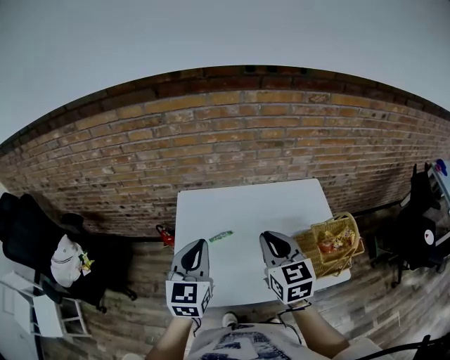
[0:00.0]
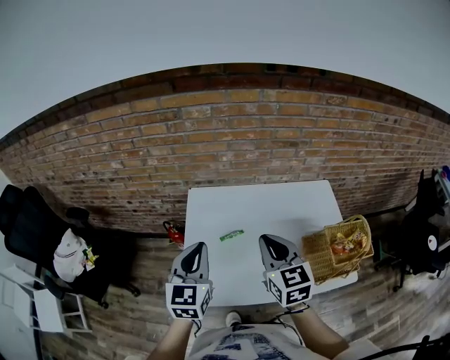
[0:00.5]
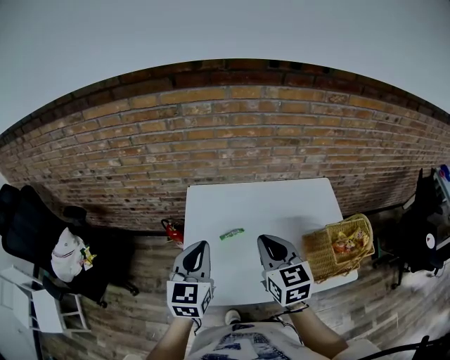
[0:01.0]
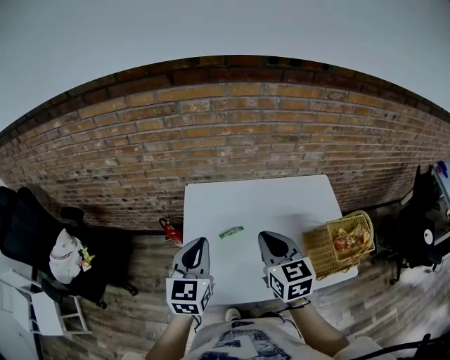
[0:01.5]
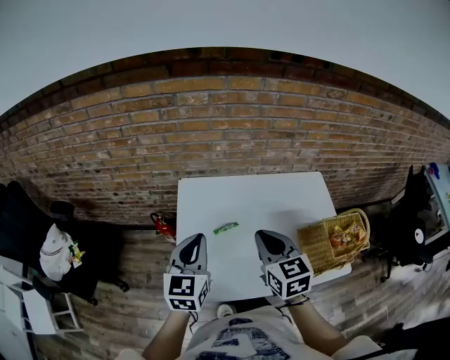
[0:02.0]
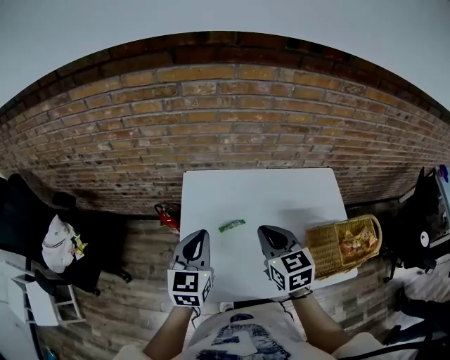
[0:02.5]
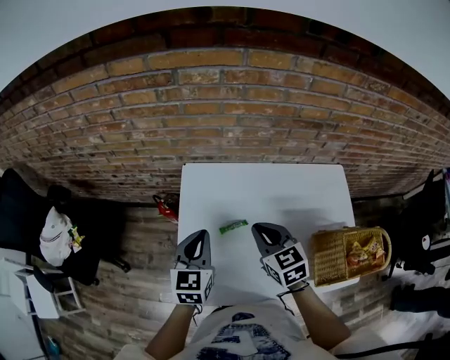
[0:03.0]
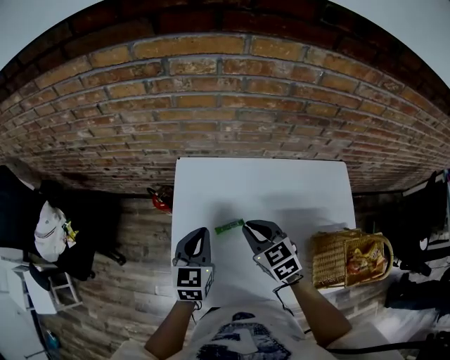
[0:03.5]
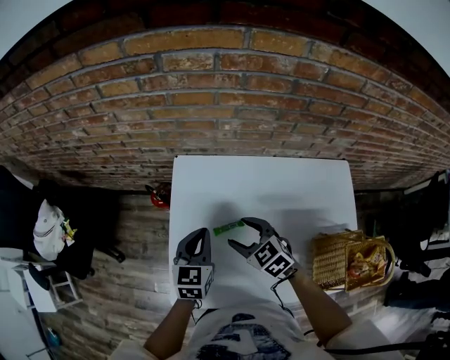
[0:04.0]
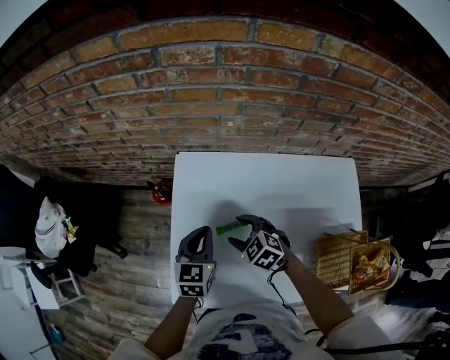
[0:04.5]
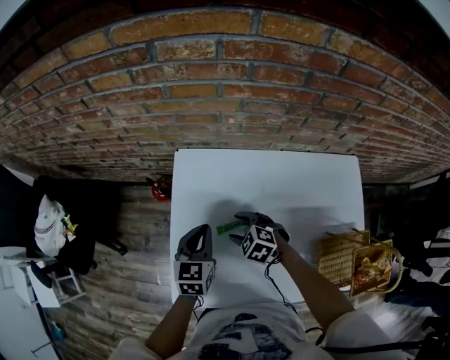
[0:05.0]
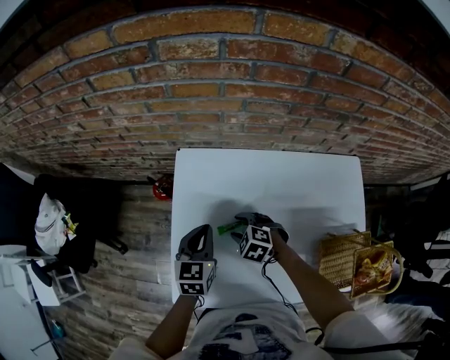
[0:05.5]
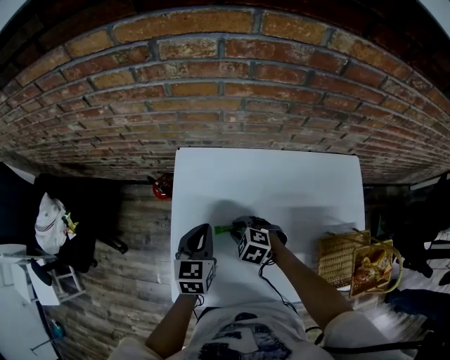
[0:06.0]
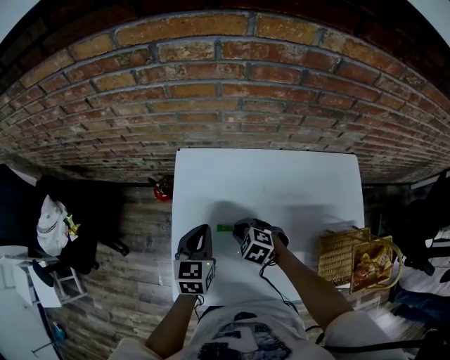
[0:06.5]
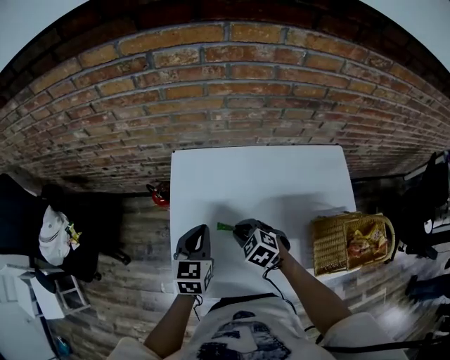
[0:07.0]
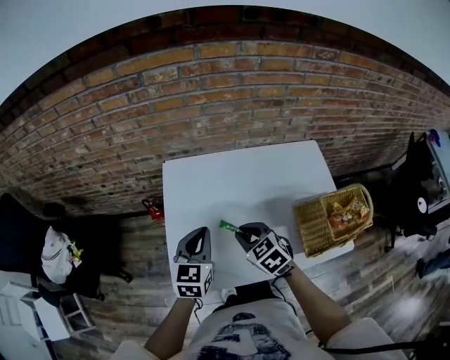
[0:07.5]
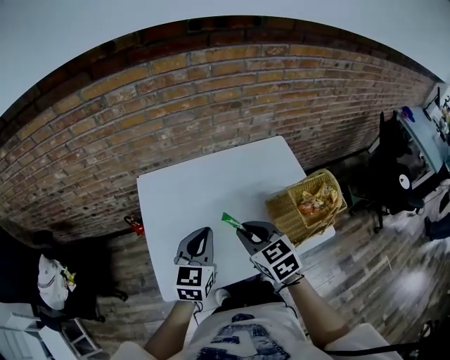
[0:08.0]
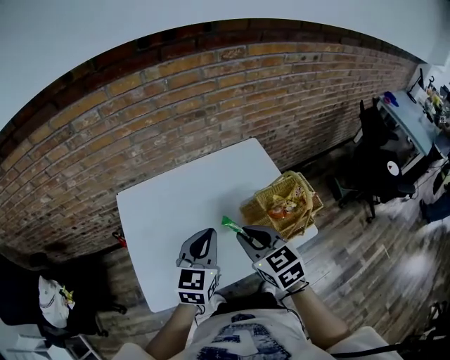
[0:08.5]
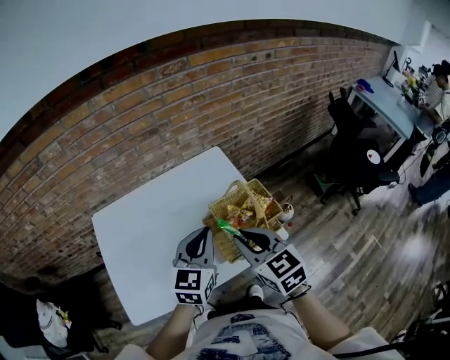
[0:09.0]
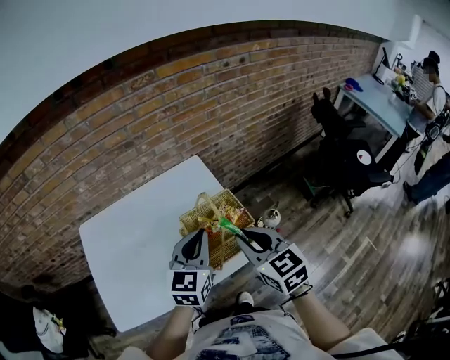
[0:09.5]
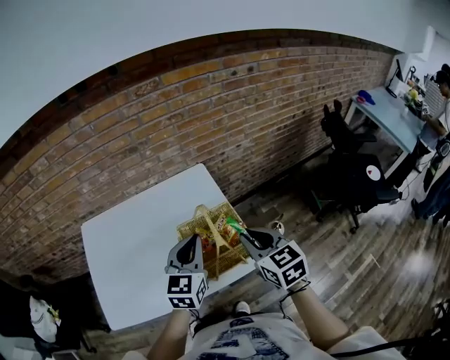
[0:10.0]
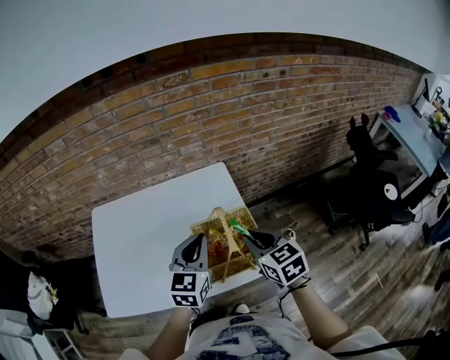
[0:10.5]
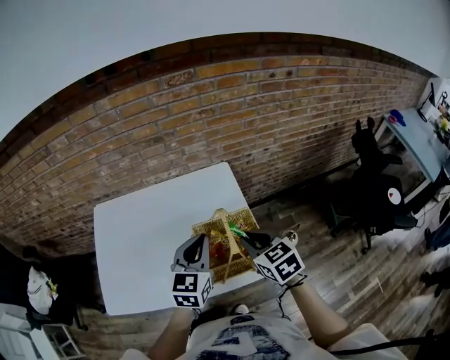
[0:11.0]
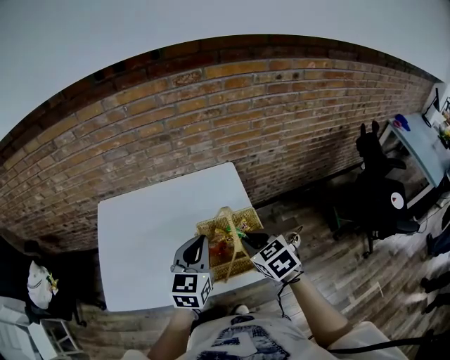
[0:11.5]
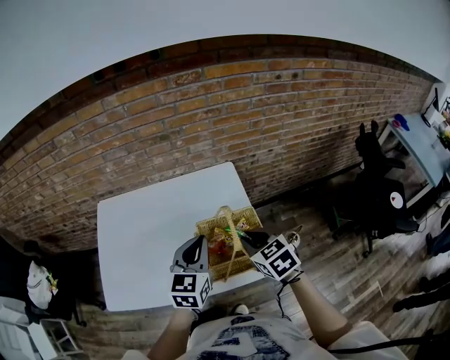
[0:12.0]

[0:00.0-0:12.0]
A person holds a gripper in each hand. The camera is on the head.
0:00.0 to 0:02.0: Both grippers travel together to the left, about 5 cm.
0:02.0 to 0:04.0: The two grippers go approximately 20 cm downward and forward. The right gripper rotates roughly 40 degrees, and opens its fingers.
0:04.0 to 0:06.0: The right gripper moves downward, some 10 cm, turns by approximately 30 degrees, and closes.
0:06.0 to 0:08.0: The right gripper heads upward, covering roughly 25 cm, and tips its fingers upward by some 30 degrees. Meanwhile the left gripper moves approximately 25 cm, and rotates roughly 30 degrees.
0:08.0 to 0:10.0: The two grippers go roughly 35 cm to the right.
0:10.0 to 0:12.0: The right gripper goes approximately 10 cm downward and forward, and changes its angle by approximately 20 degrees.

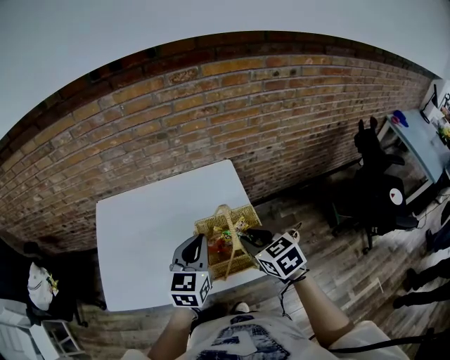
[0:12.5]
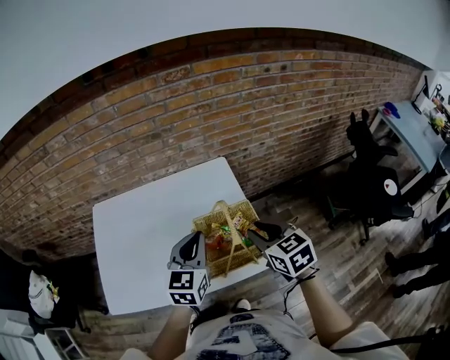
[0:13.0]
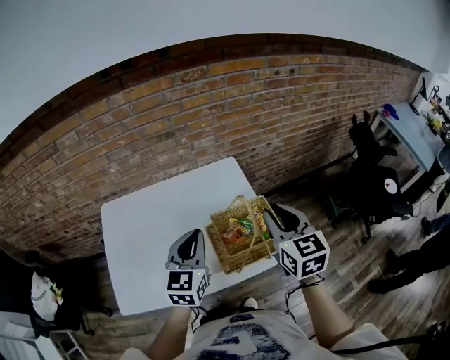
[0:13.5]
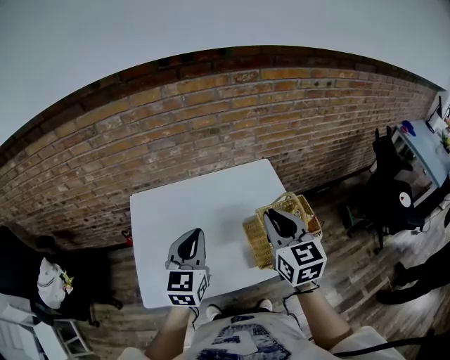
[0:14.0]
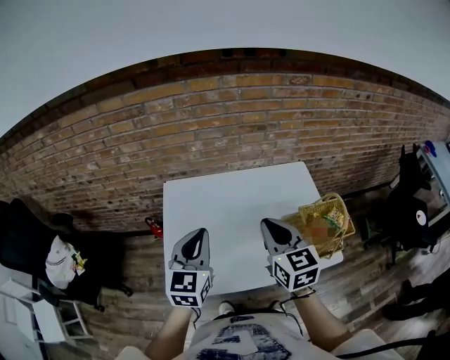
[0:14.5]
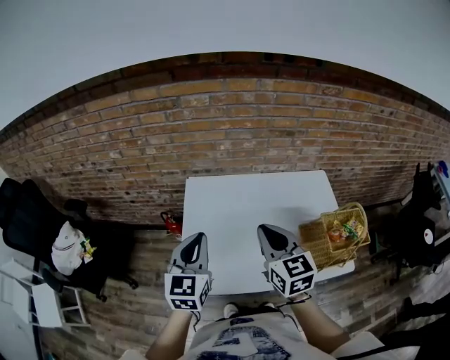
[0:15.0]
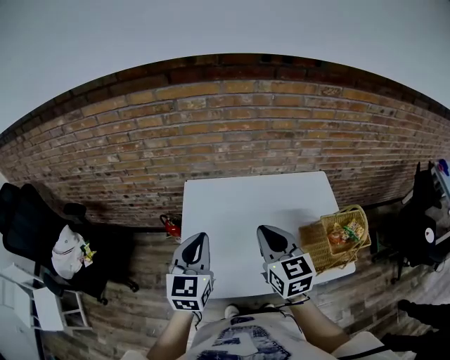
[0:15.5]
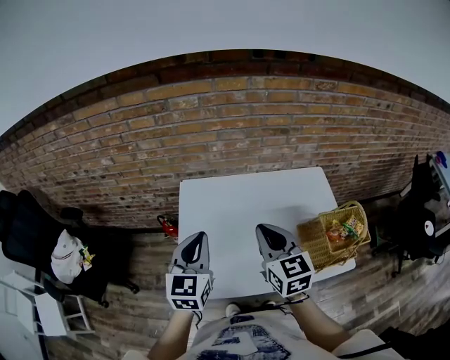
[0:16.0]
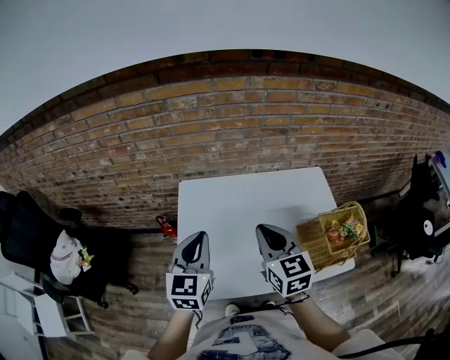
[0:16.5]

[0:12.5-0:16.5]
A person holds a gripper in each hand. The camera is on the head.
0:12.5 to 0:14.5: The two grippers go approximately 30 cm to the left. The right gripper rotates about 20 degrees.
0:14.5 to 0:16.5: The grippers both shift to the left by roughly 5 cm.

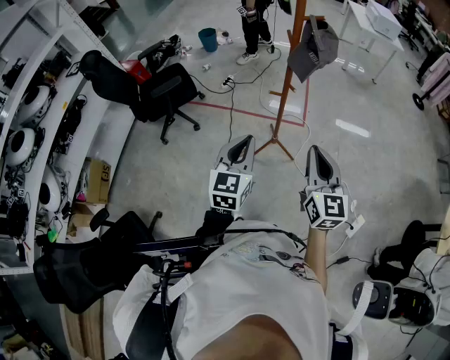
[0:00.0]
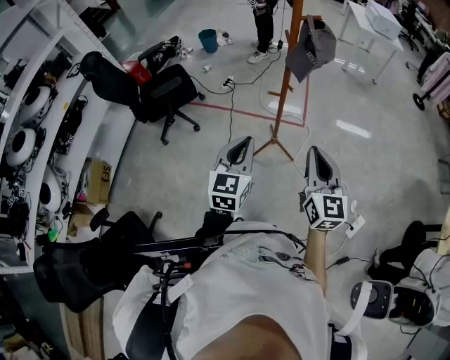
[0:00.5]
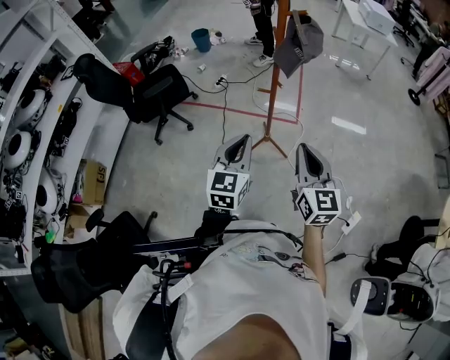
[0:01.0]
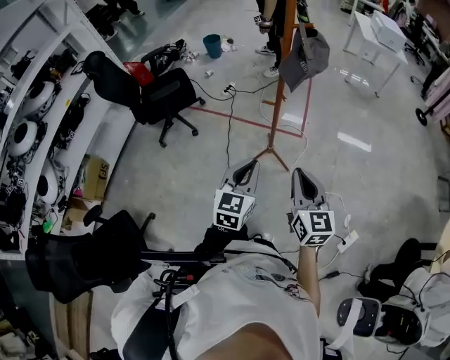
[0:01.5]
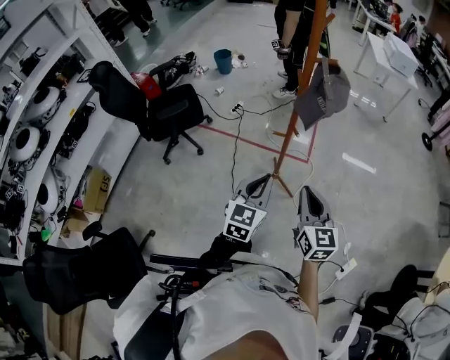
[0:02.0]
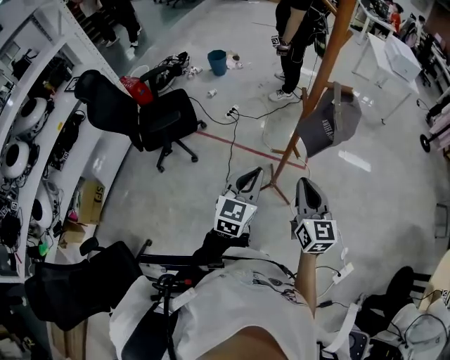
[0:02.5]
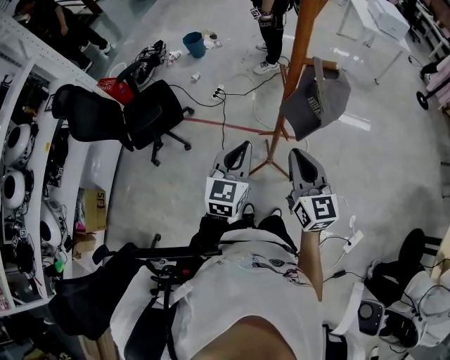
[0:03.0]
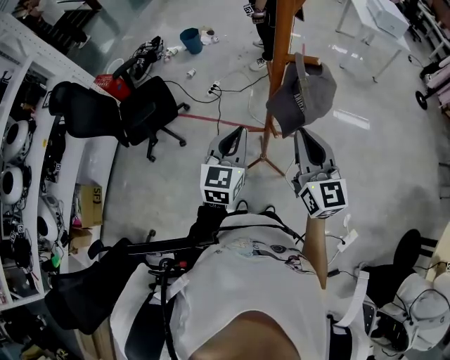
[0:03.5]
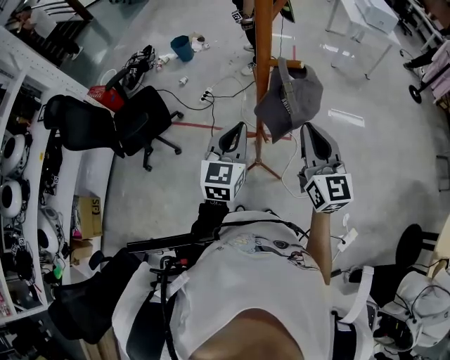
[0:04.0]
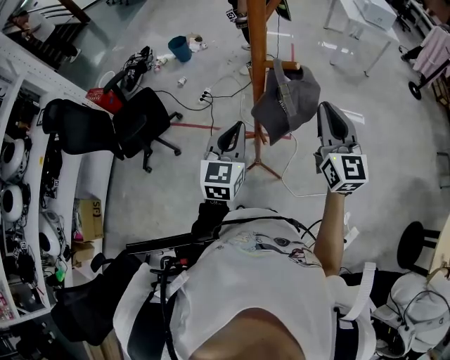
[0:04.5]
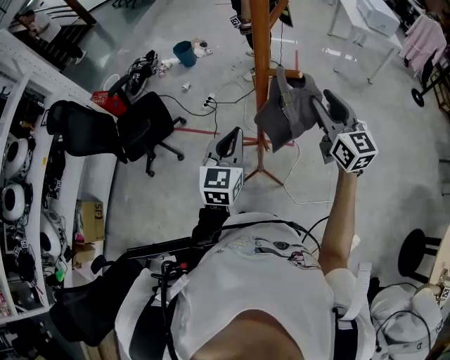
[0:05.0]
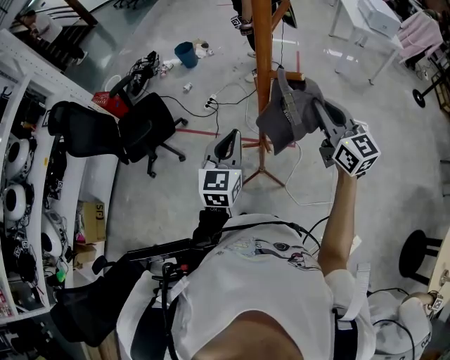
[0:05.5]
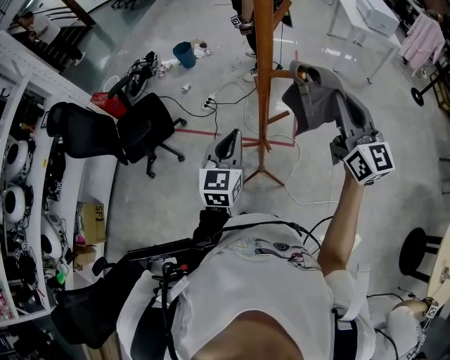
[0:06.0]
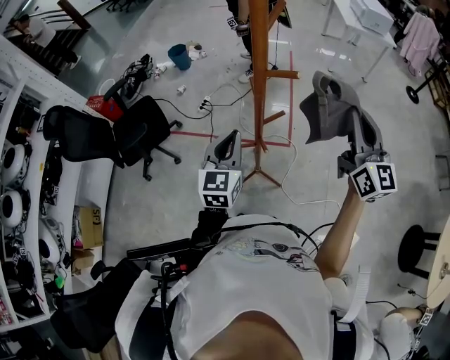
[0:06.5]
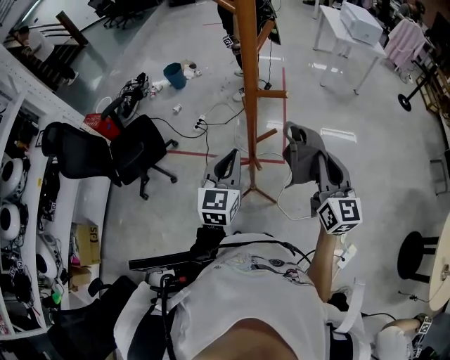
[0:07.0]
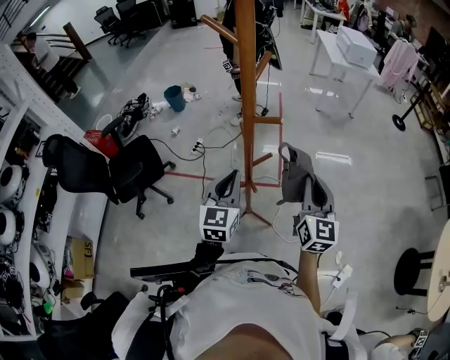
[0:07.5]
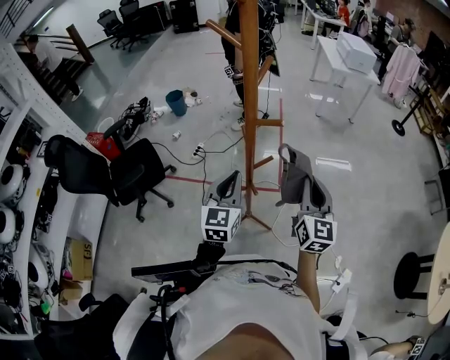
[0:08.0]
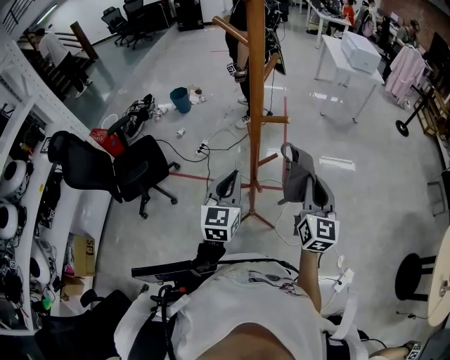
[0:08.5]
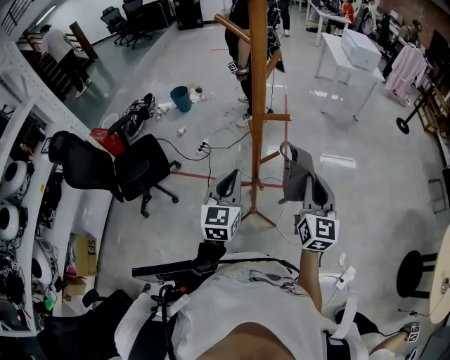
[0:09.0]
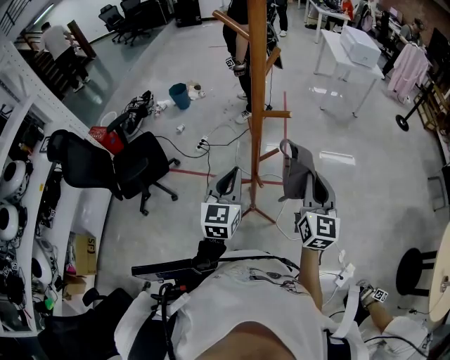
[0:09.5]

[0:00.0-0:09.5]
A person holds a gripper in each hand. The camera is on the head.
0:00.0 to 0:02.0: The right gripper travels forward and downward by some 10 cm; the left gripper is displaced forward and to the right by about 10 cm.
0:02.0 to 0:04.0: The left gripper shifts about 25 cm forward. Meanwhile the right gripper is displaced forward and upward by some 25 cm.
0:04.0 to 0:05.5: The right gripper moves forward, about 10 cm, and opens and closes again.
0:05.5 to 0:07.5: The right gripper shifts some 10 cm backward, moves approximately 5 cm upward and comes back, and changes its angle by some 30 degrees.
0:07.5 to 0:09.5: The grippers make only small movements.

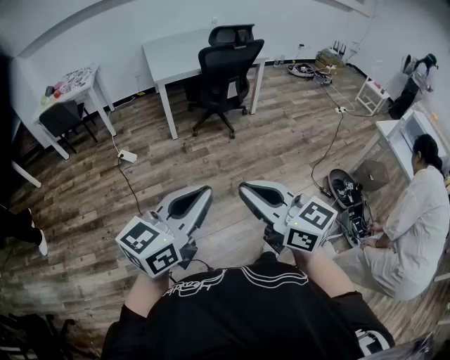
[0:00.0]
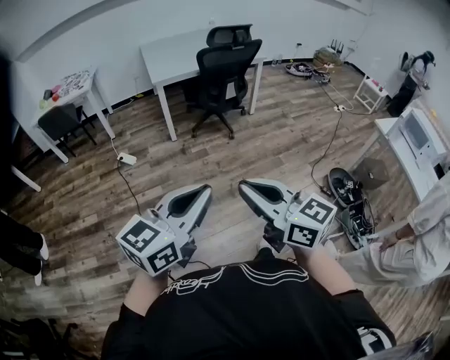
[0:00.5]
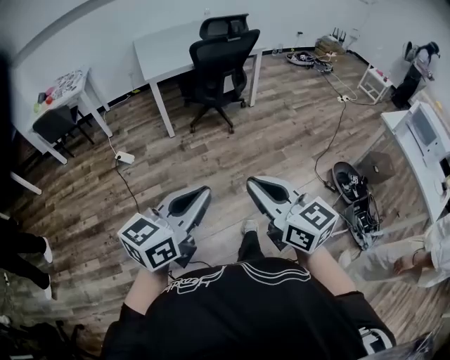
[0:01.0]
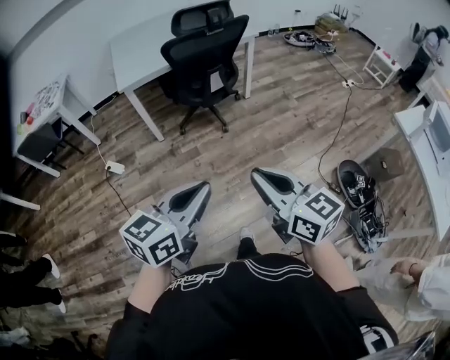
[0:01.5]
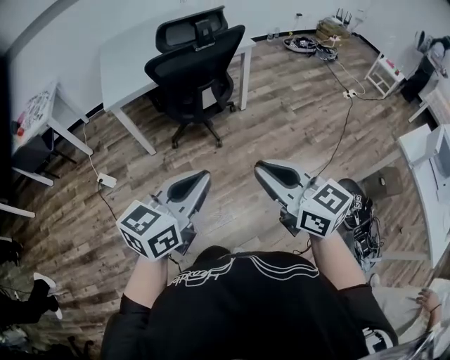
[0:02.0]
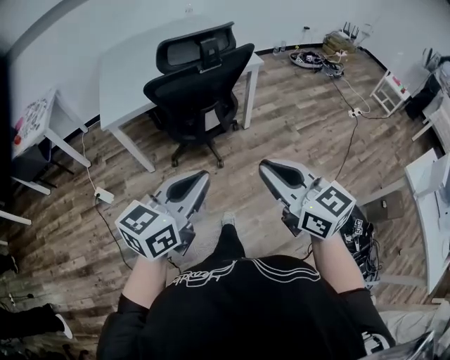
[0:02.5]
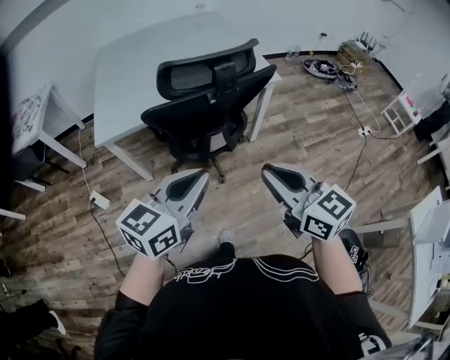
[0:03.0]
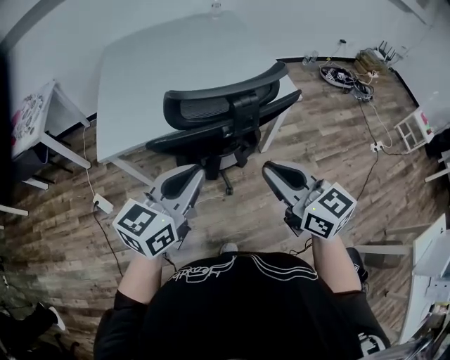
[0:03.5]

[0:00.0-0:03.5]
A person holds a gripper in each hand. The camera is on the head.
0:00.0 to 0:02.0: The two grippers travel together, forward and to the right, about 50 cm.
0:02.0 to 0:03.5: The pair of grippers is taken forward, some 50 cm.
